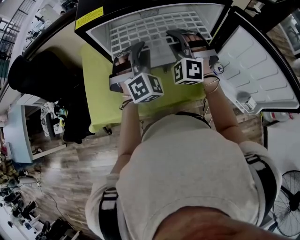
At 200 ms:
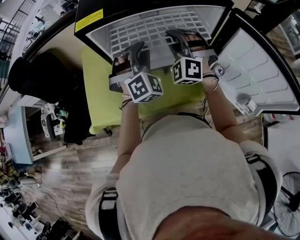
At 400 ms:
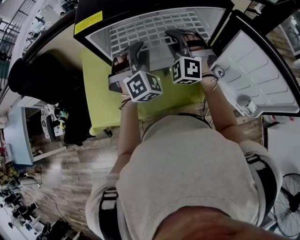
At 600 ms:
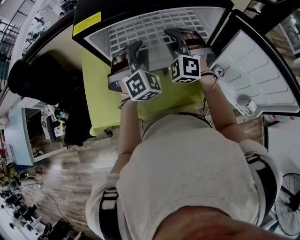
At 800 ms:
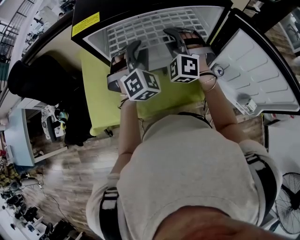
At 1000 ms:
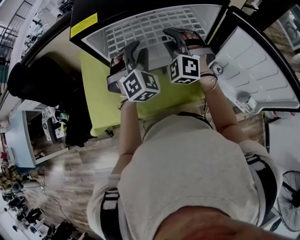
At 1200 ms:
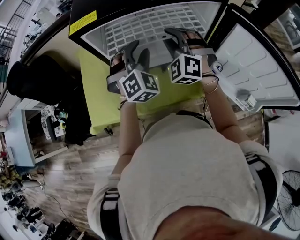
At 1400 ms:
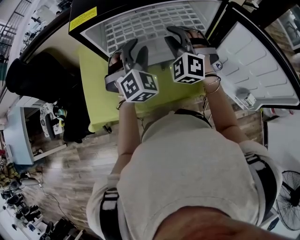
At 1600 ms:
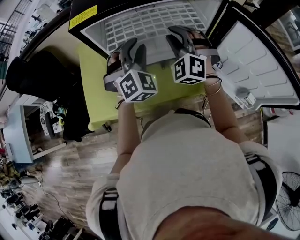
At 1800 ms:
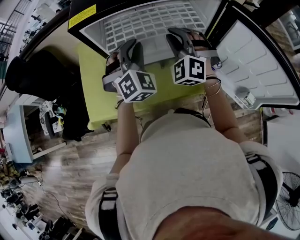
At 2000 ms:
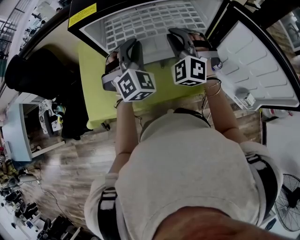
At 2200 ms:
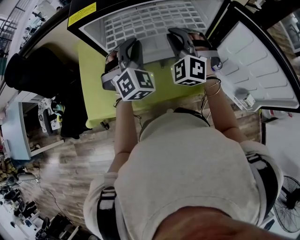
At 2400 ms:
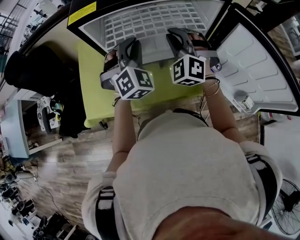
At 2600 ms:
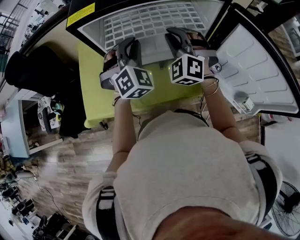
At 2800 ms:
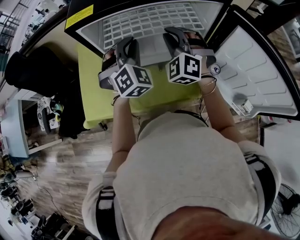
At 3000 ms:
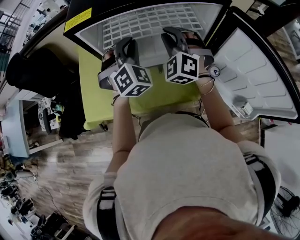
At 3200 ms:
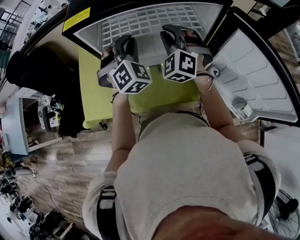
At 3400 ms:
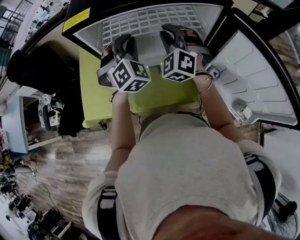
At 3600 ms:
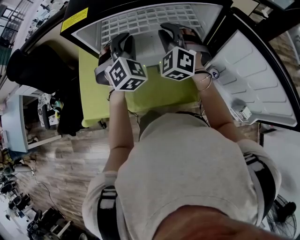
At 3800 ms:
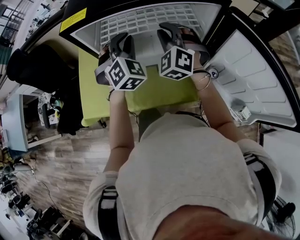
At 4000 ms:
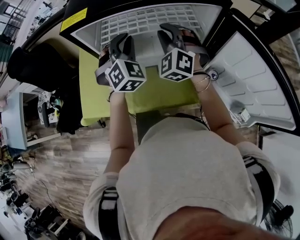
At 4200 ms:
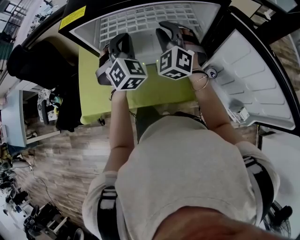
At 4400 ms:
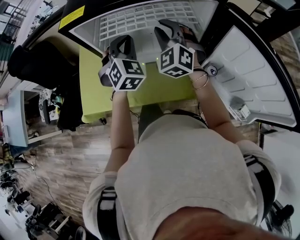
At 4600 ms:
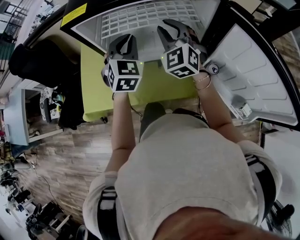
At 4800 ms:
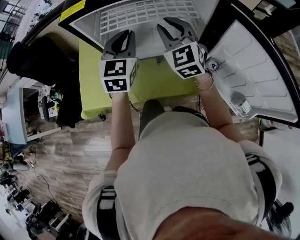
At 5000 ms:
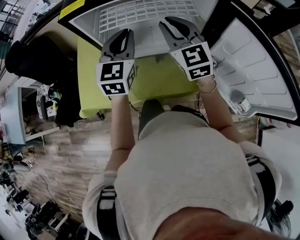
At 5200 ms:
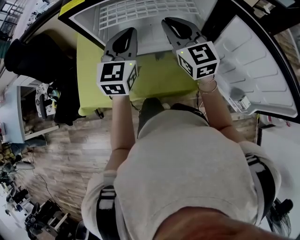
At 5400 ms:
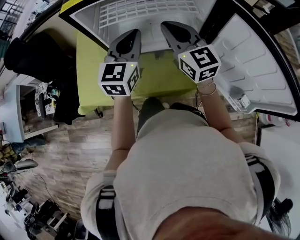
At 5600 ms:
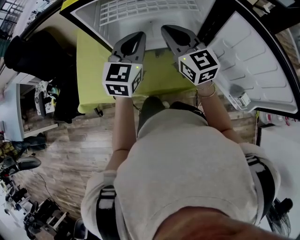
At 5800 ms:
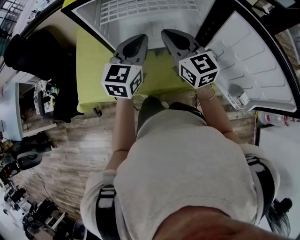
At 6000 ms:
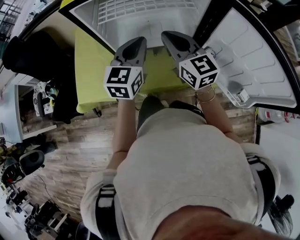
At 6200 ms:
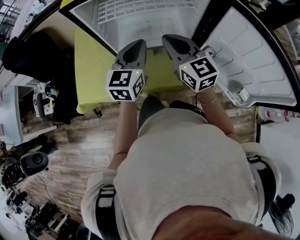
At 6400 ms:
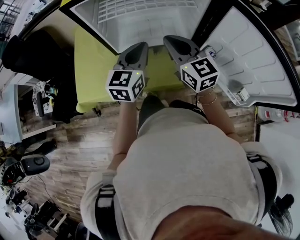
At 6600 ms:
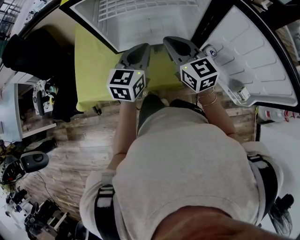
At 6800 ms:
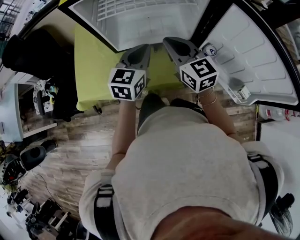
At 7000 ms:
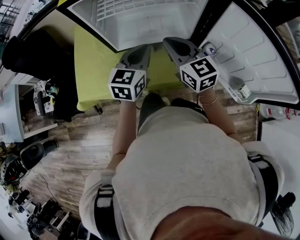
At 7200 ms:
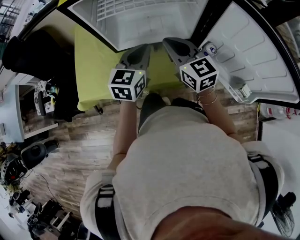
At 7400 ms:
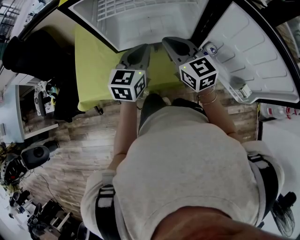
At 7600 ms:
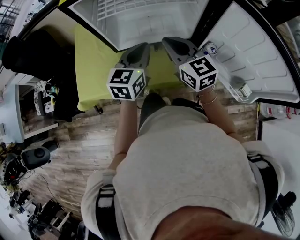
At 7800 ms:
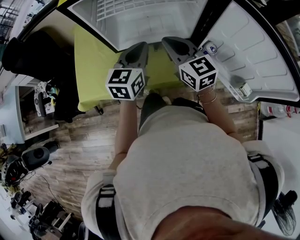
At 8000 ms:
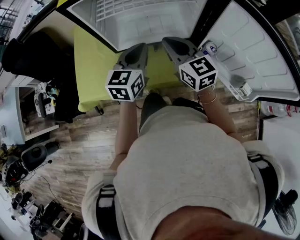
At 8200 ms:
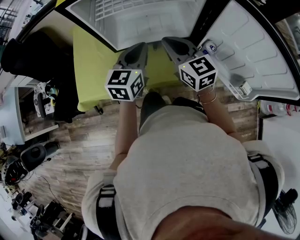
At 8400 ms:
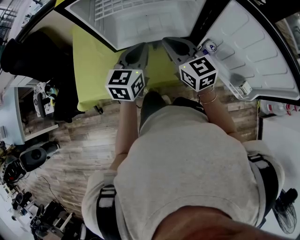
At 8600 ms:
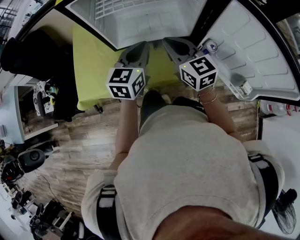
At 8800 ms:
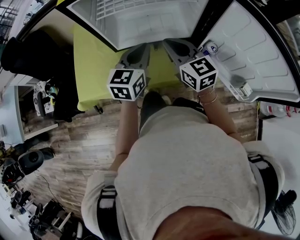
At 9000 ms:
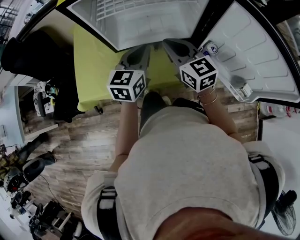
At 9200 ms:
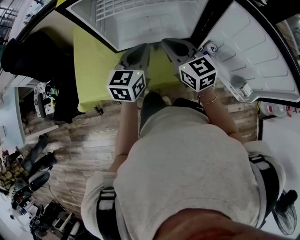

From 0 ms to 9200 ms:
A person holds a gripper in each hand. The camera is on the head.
From 0 ms to 3000 ms: The grippers stay close to where they were, moving slightly.
From 3000 ms to 4600 ms: The left gripper turns by some 30 degrees. The right gripper changes its angle by roughly 20 degrees.
From 4600 ms to 6200 ms: Both grippers travel together backward, about 10 cm. The right gripper swivels roughly 40 degrees, and closes up. Meanwhile the left gripper rotates roughly 30 degrees.
From 6200 ms to 9200 ms: The grippers move only a little.

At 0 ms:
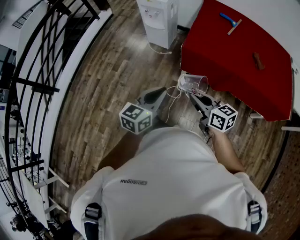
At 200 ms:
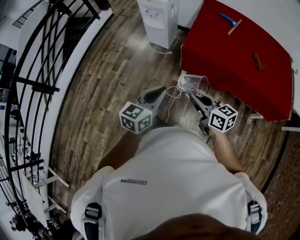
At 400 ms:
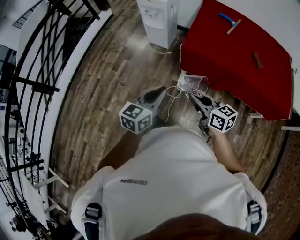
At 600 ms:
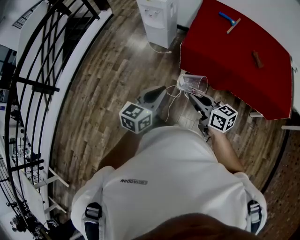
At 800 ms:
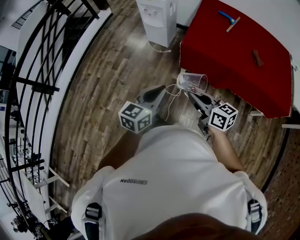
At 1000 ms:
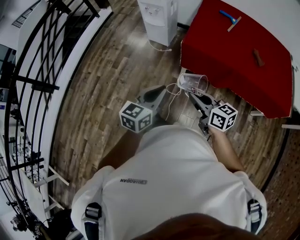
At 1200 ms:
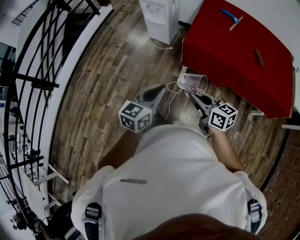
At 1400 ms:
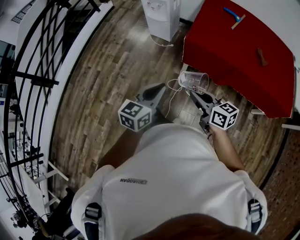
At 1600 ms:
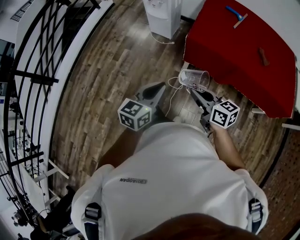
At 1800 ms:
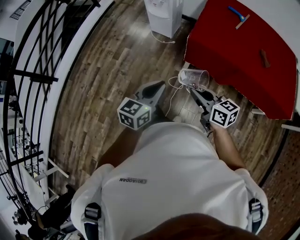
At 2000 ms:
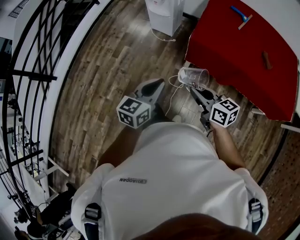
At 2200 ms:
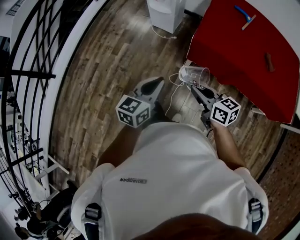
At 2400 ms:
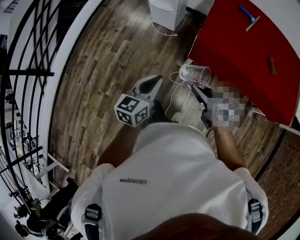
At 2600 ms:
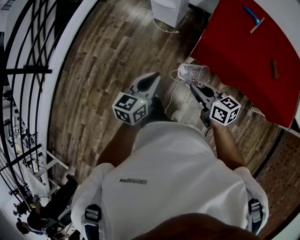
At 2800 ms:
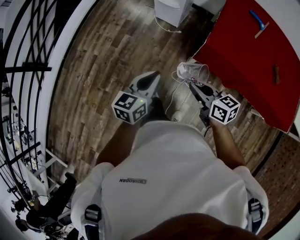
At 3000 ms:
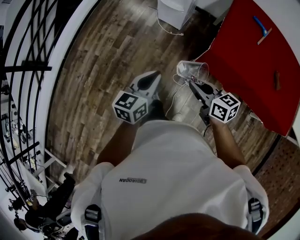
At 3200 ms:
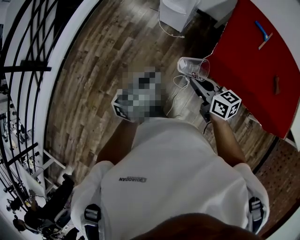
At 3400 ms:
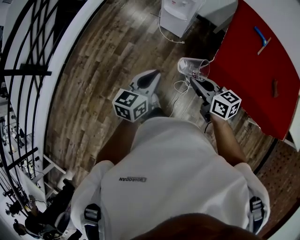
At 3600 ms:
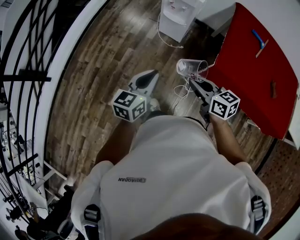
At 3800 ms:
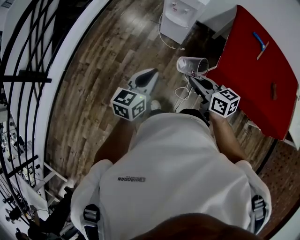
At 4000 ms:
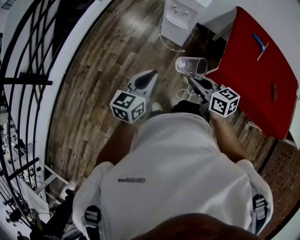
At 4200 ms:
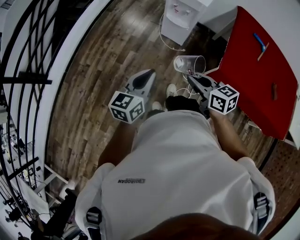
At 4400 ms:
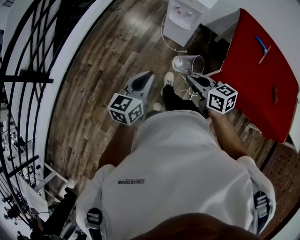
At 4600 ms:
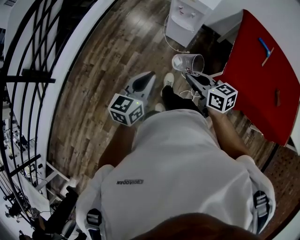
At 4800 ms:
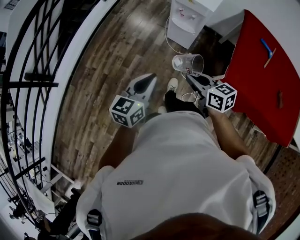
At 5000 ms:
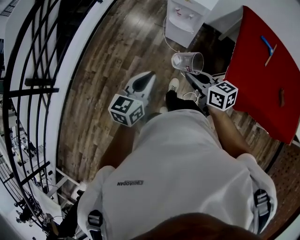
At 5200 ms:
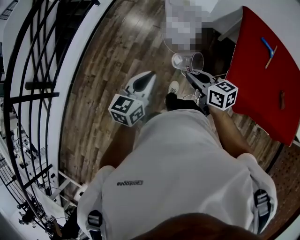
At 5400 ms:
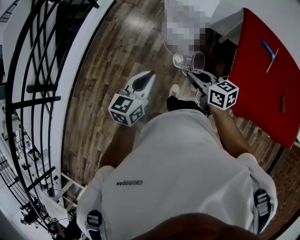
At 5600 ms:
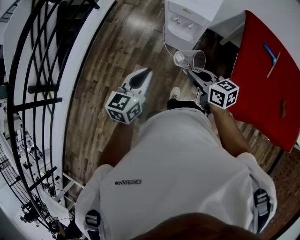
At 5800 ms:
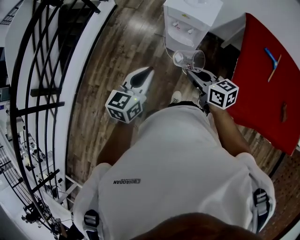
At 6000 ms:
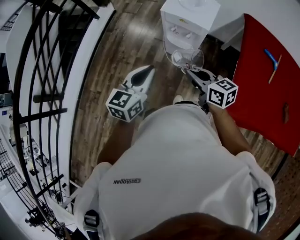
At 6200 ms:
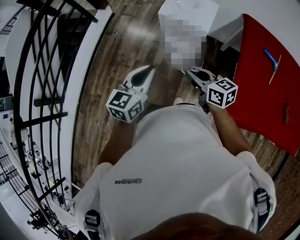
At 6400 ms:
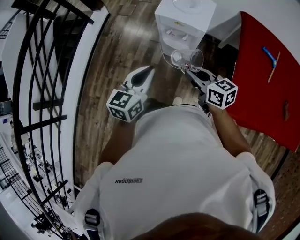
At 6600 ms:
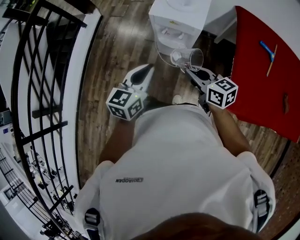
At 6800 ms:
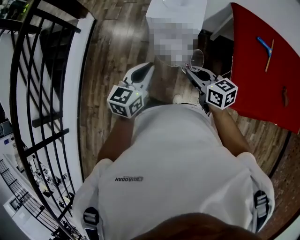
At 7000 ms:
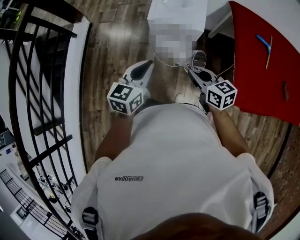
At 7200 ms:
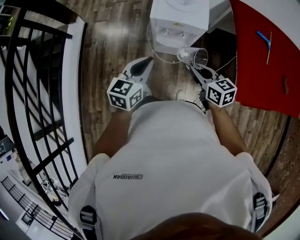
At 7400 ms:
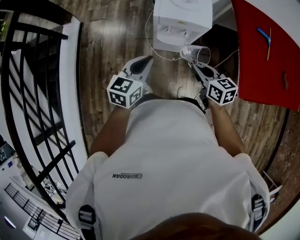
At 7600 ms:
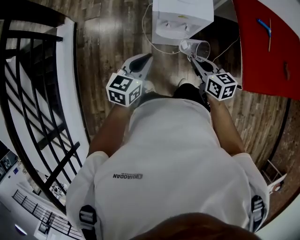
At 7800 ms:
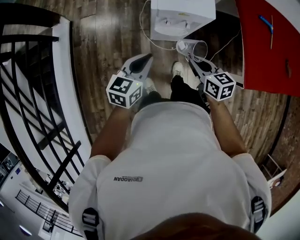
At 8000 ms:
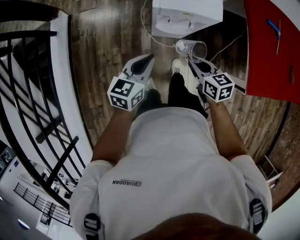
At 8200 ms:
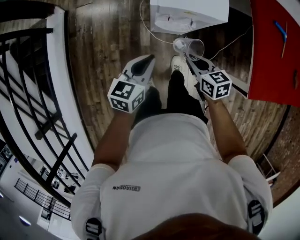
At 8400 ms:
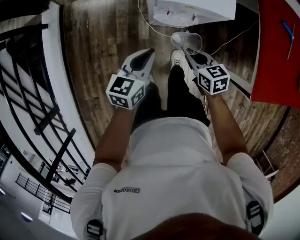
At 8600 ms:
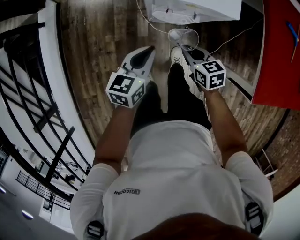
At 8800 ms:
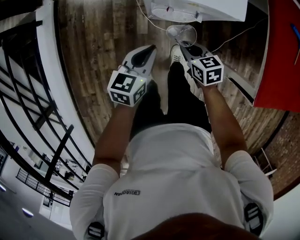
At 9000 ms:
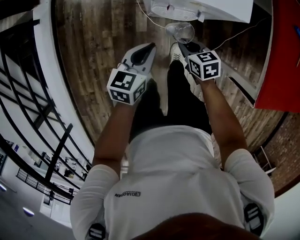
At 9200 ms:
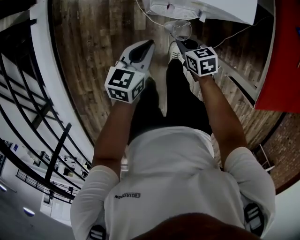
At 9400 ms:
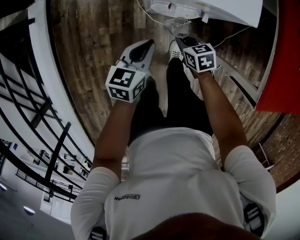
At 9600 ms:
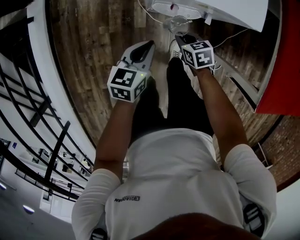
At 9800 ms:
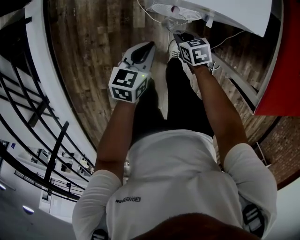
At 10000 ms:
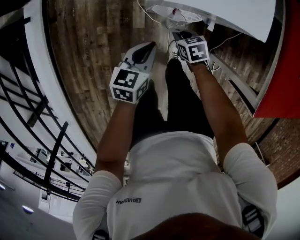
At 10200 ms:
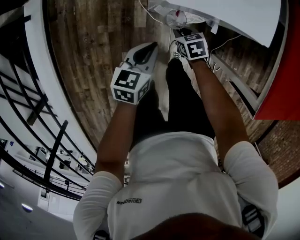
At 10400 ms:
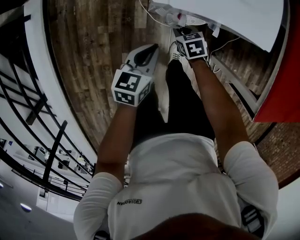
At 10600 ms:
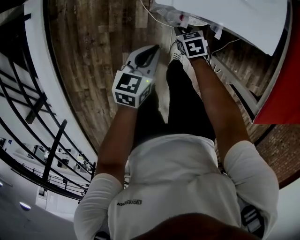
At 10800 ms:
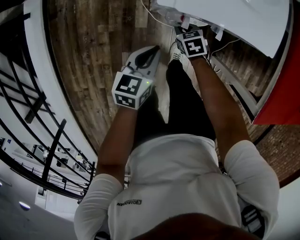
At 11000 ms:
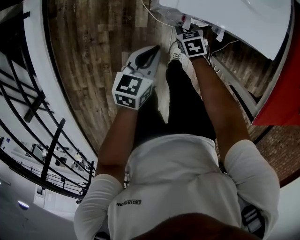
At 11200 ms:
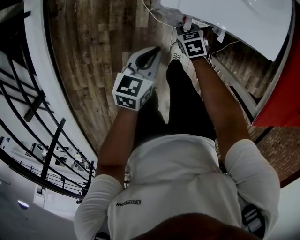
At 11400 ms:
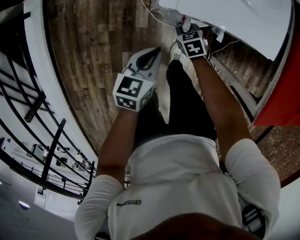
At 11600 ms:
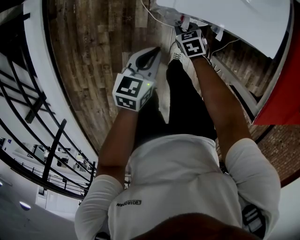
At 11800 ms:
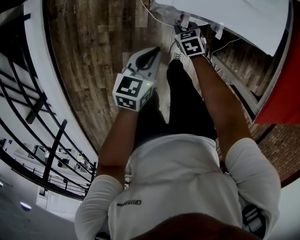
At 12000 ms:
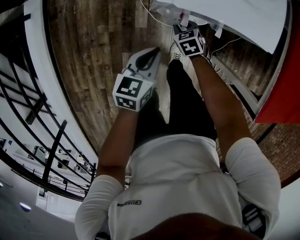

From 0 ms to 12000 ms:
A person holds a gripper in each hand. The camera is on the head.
From 0 ms to 1600 ms: The grippers stay close to where they were, moving slightly.
From 1600 ms to 3000 ms: The two grippers go approximately 20 cm forward and to the left.
From 3000 ms to 4400 ms: The left gripper goes roughly 15 cm to the left and forward; the right gripper goes about 15 cm forward and to the left.
From 4400 ms to 6000 ms: The grippers both shift forward by approximately 25 cm.
From 6000 ms to 7600 ms: The left gripper ends up about 20 cm from where it was, and swivels about 30 degrees; the right gripper shifts by approximately 15 cm, and swivels about 30 degrees.
From 7600 ms to 9000 ms: The grippers both shift downward by roughly 25 cm. The right gripper swivels some 20 degrees.
From 9000 ms to 10400 ms: The right gripper travels downward and forward by approximately 15 cm, while the left gripper moves downward, about 5 cm.
From 10400 ms to 12000 ms: The grippers make only small movements.

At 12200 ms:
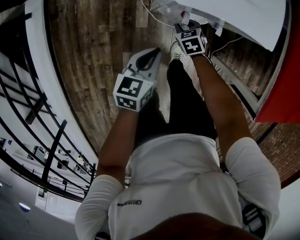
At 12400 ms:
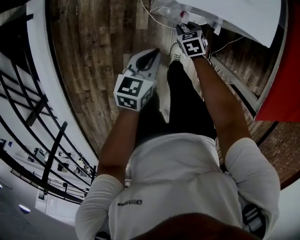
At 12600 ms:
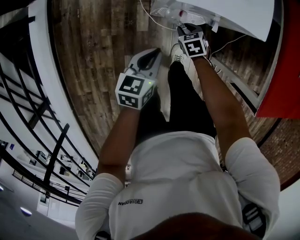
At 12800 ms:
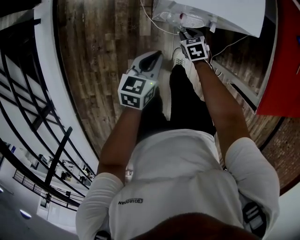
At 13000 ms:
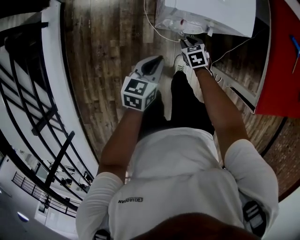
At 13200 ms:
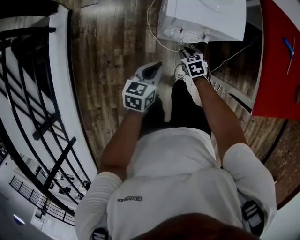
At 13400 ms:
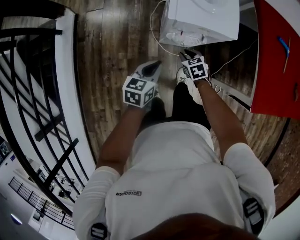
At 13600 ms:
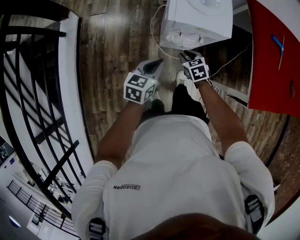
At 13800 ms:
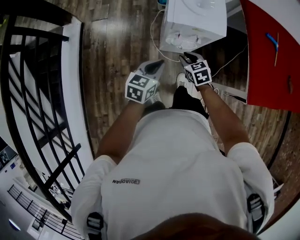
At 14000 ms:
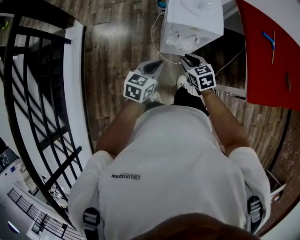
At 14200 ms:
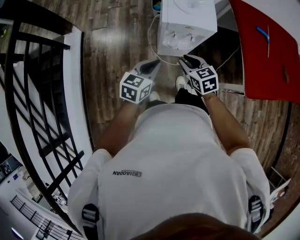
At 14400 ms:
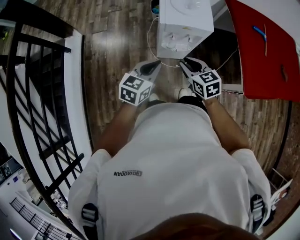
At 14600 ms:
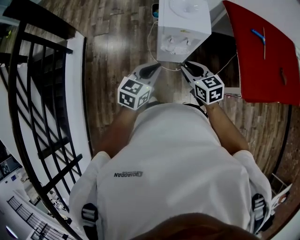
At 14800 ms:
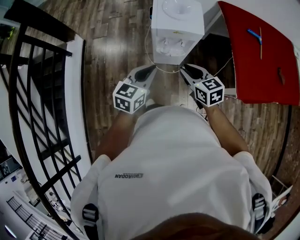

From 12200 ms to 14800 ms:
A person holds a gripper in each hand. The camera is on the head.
From 12200 ms to 13400 ms: The right gripper travels upward and backward by approximately 20 cm; the left gripper goes roughly 15 cm upward.
From 13400 ms to 14800 ms: The left gripper goes about 20 cm upward and backward; the right gripper heads upward and backward, covering some 30 cm, and turns by about 30 degrees.
